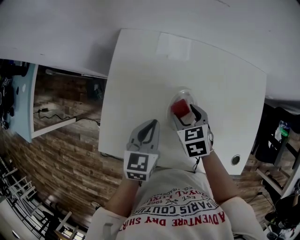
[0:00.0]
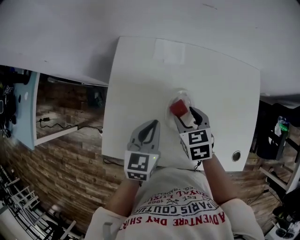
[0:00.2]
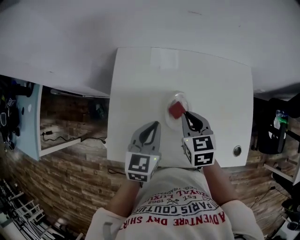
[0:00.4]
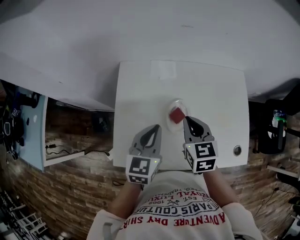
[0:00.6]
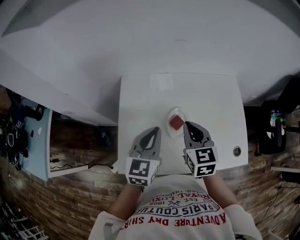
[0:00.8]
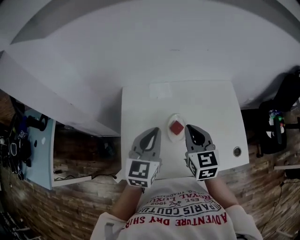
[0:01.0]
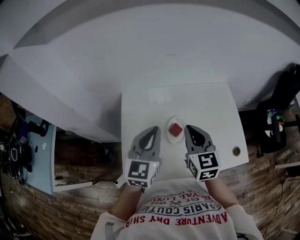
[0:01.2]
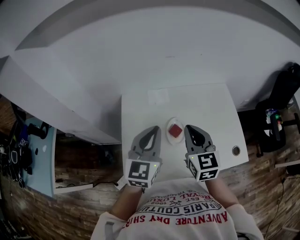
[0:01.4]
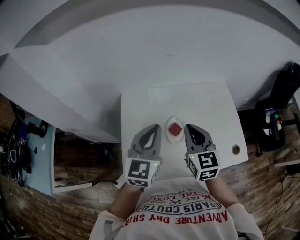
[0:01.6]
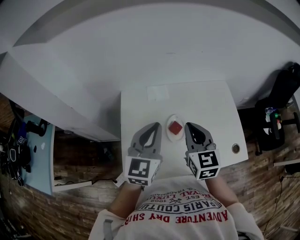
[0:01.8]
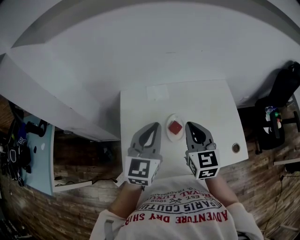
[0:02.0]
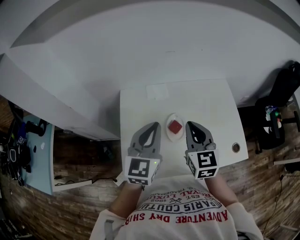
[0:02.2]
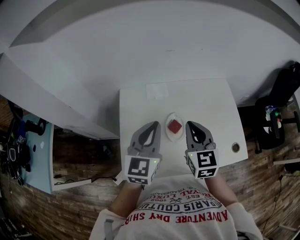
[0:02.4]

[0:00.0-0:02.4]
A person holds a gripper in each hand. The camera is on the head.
0:00.0 to 0:01.2: Both grippers travel together upward, roughly 25 cm. The left gripper changes its angle by about 30 degrees; the right gripper points its fingers about 40 degrees further upward, and closes.
0:01.2 to 0:02.4: The grippers stay close to where they were, moving slightly.

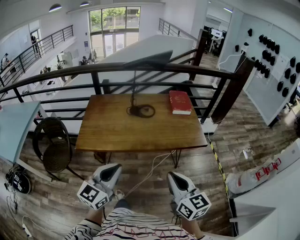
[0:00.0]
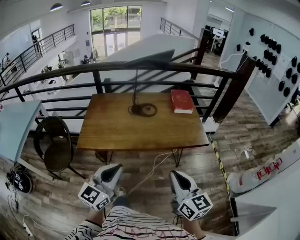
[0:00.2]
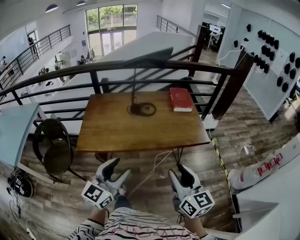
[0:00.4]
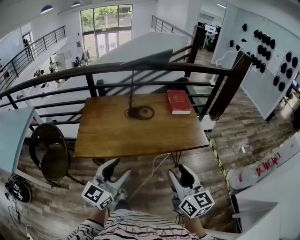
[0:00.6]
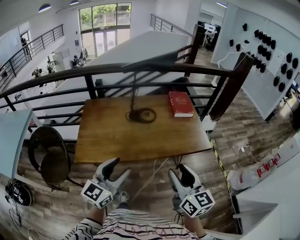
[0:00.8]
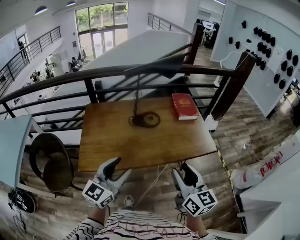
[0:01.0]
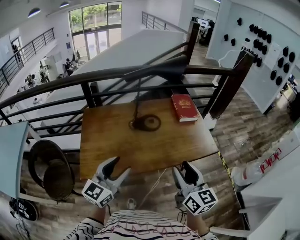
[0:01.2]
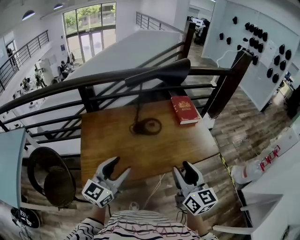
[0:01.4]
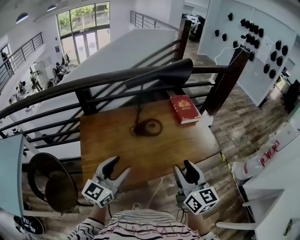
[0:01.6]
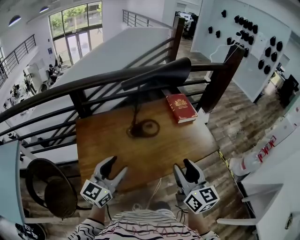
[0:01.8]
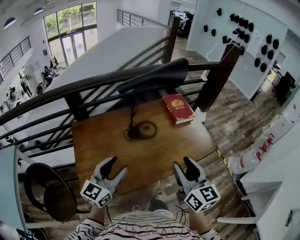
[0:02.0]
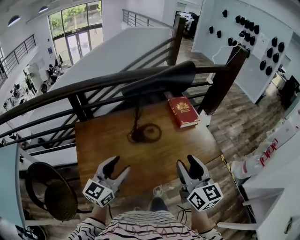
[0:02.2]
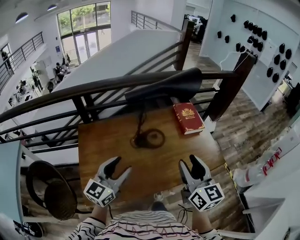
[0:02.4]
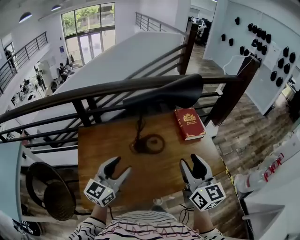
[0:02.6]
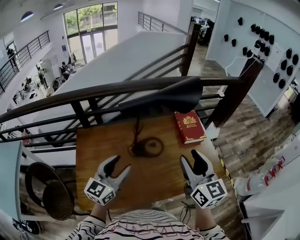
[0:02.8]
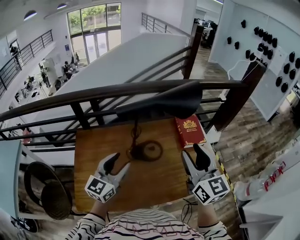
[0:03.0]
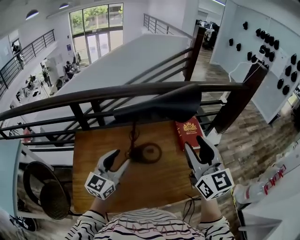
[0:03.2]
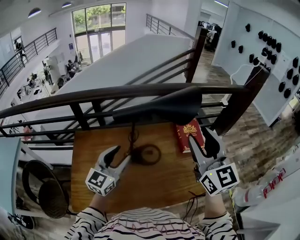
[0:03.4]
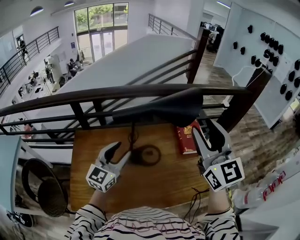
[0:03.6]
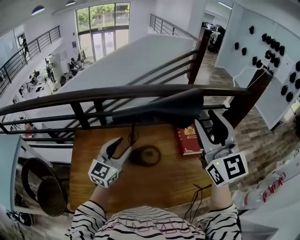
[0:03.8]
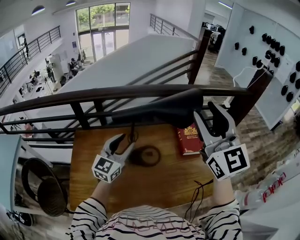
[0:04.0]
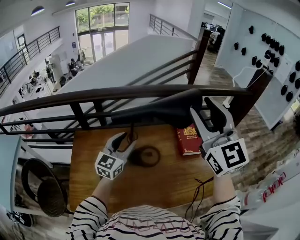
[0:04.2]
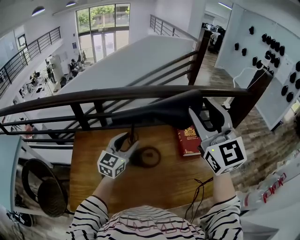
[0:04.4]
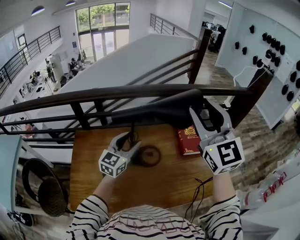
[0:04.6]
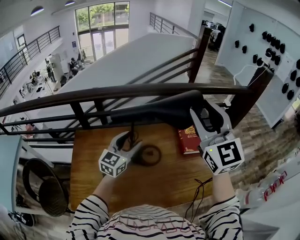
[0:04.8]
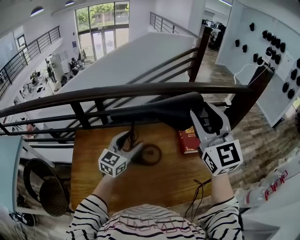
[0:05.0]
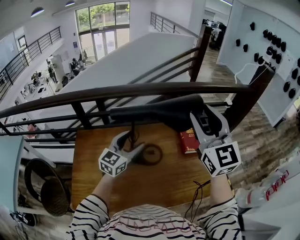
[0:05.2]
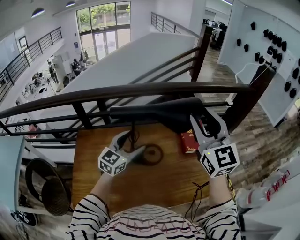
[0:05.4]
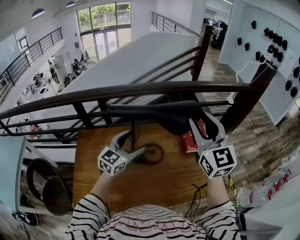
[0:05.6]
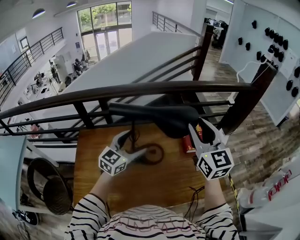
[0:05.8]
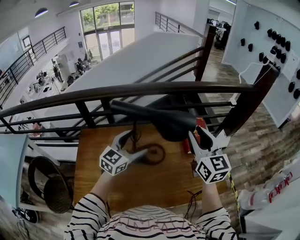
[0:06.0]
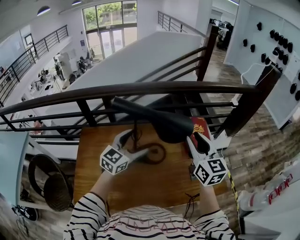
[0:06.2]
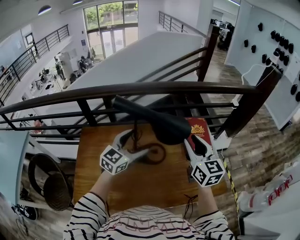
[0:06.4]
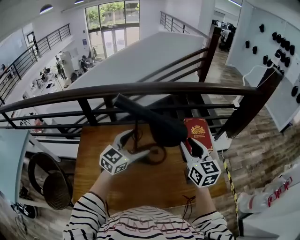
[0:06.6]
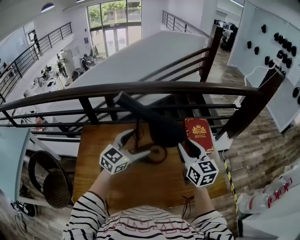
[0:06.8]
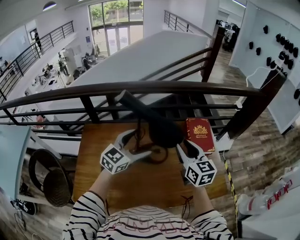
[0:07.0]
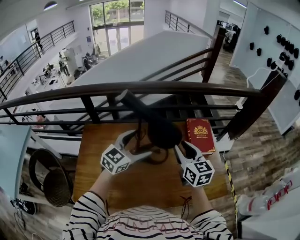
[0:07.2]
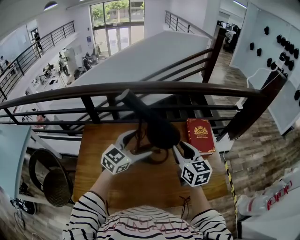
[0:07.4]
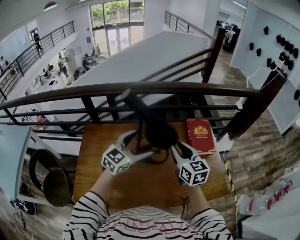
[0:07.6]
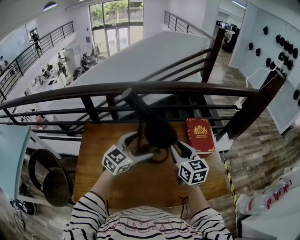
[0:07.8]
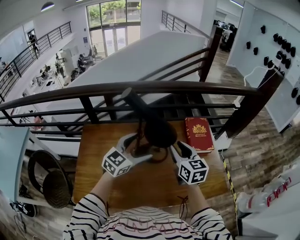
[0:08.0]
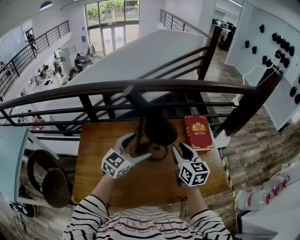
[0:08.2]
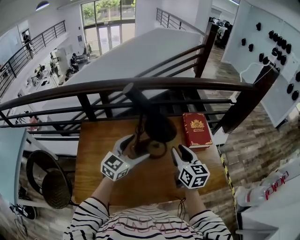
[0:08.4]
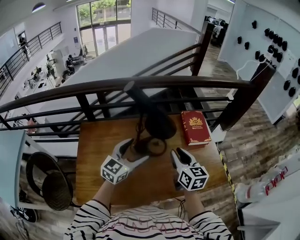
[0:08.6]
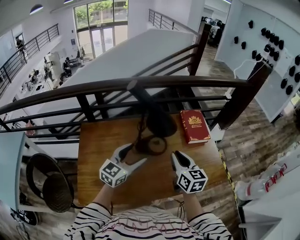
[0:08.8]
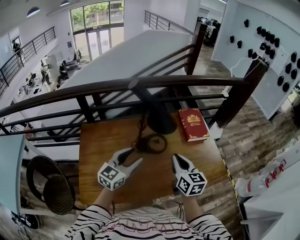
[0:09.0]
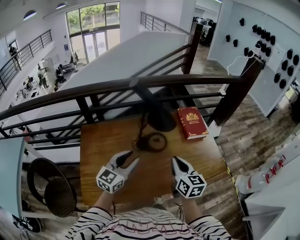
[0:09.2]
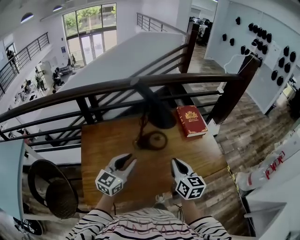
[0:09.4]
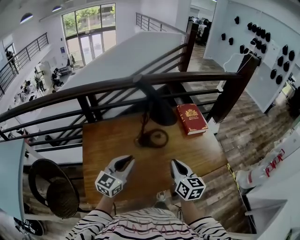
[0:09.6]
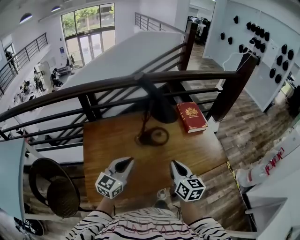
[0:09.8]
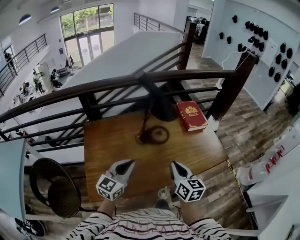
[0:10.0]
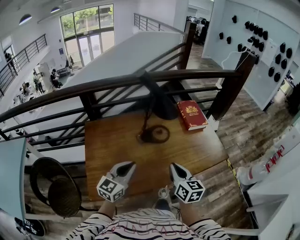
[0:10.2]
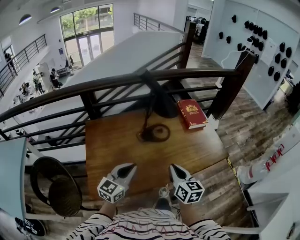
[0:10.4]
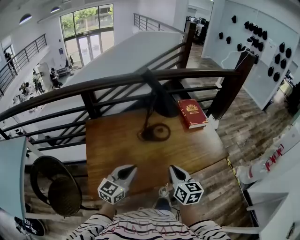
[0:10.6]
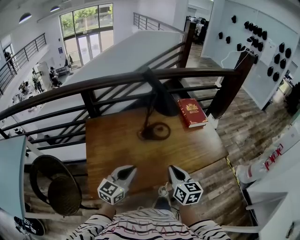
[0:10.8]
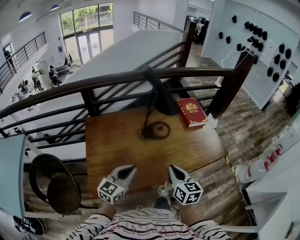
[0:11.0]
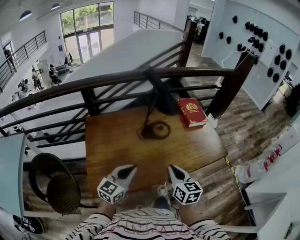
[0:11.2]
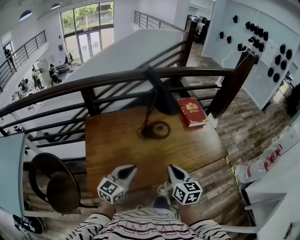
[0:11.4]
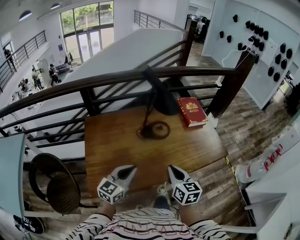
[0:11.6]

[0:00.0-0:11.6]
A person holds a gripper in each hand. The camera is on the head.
0:00.0 to 0:01.4: The two grippers go roughly 30 cm forward and to the left. The right gripper opens. Meanwhile the left gripper opens up.
0:01.4 to 0:02.8: Both grippers move forward, some 25 cm.
0:02.8 to 0:04.4: The left gripper travels forward by roughly 20 cm. The right gripper goes roughly 20 cm upward and forward, and turns by approximately 30 degrees.
0:04.4 to 0:05.8: The left gripper opens its fingers. The right gripper is displaced downward by some 10 cm.
0:05.8 to 0:07.2: The right gripper heads downward, covering roughly 15 cm, and swivels approximately 20 degrees.
0:07.2 to 0:08.8: Both grippers travel together backward, roughly 10 cm.
0:08.8 to 0:10.2: Both grippers travel together backward, some 20 cm. The left gripper closes up.
0:10.2 to 0:11.6: The grippers move only a little.

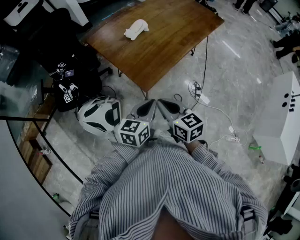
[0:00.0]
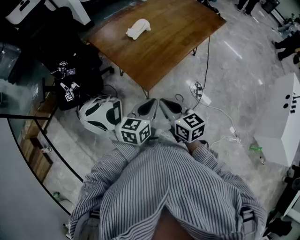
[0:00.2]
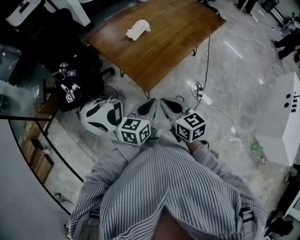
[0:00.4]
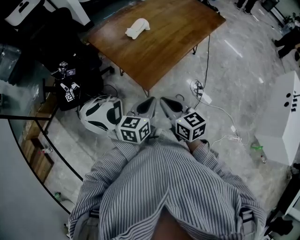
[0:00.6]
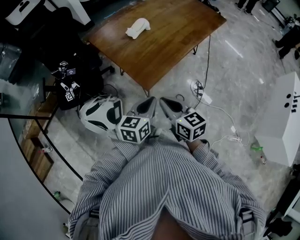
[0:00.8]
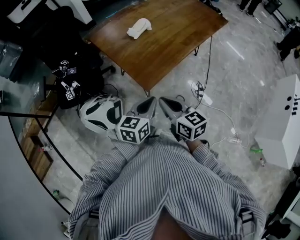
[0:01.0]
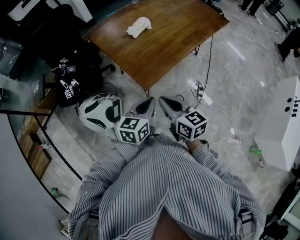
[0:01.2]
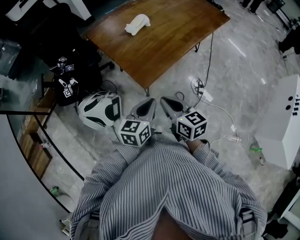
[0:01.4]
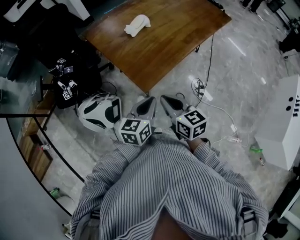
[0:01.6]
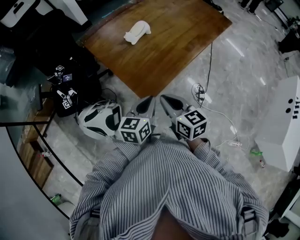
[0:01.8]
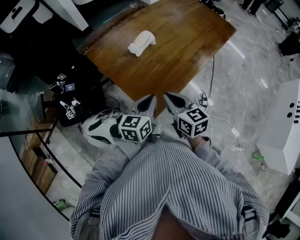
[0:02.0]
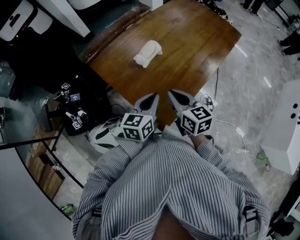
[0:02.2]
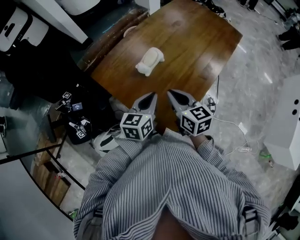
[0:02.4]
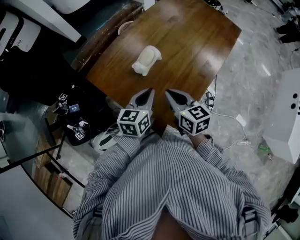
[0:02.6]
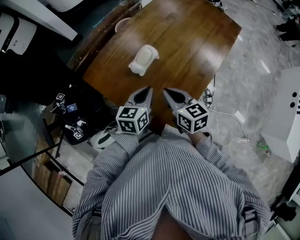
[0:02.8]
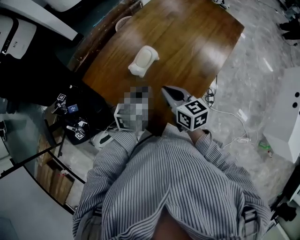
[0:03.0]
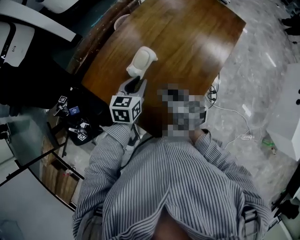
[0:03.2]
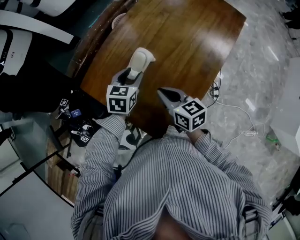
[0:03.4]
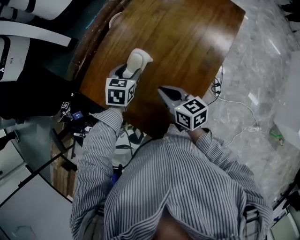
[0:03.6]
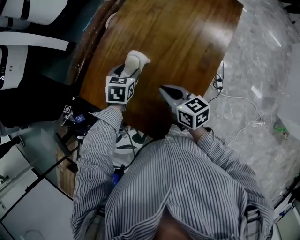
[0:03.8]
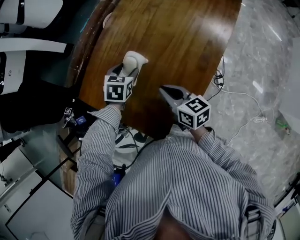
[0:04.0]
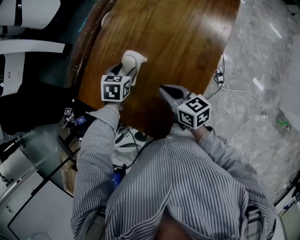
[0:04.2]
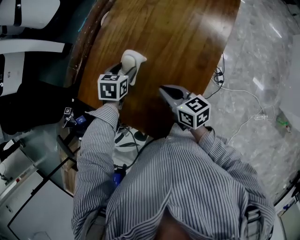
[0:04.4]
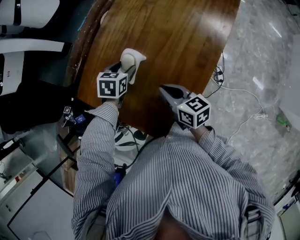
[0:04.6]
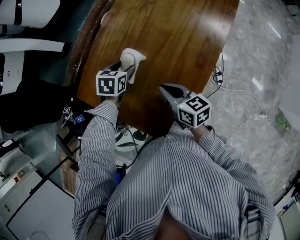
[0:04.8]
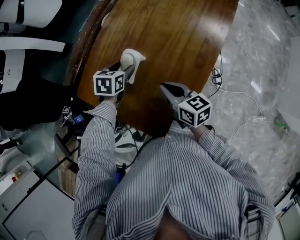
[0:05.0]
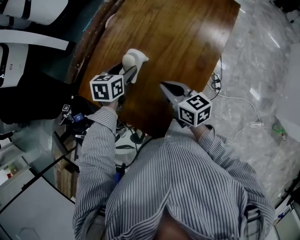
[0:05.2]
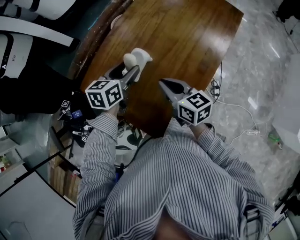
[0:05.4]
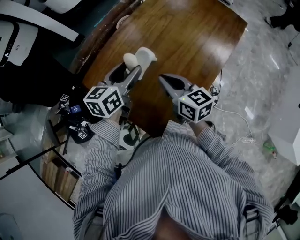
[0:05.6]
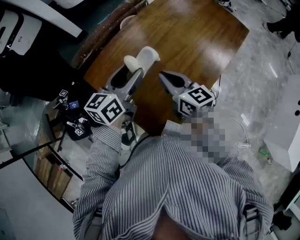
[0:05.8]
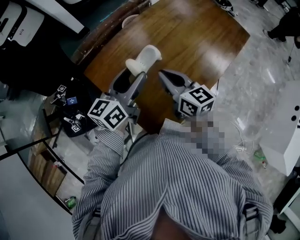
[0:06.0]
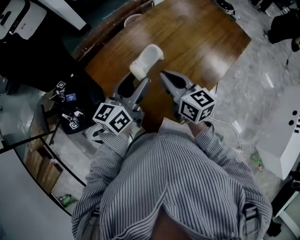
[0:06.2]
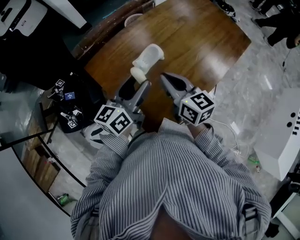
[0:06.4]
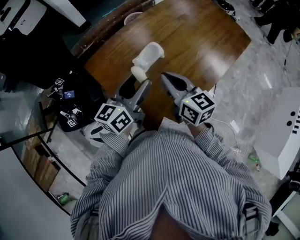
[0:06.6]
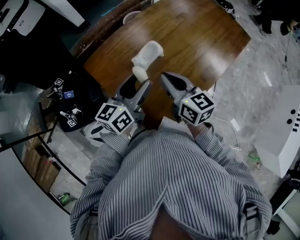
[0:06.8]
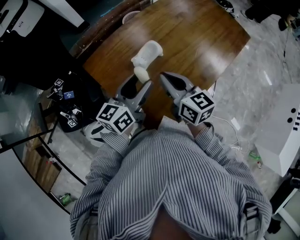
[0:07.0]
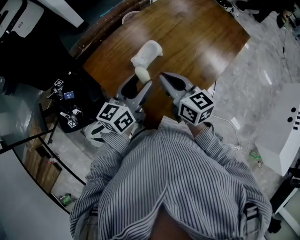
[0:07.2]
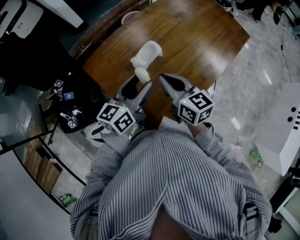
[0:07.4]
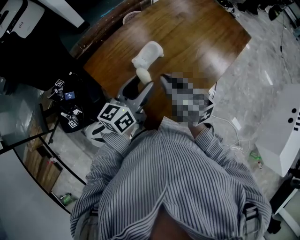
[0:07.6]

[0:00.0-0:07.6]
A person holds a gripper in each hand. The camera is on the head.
0:00.0 to 0:01.6: The grippers stay close to where they were, moving slightly.
0:01.6 to 0:03.0: The two grippers go roughly 35 cm forward.
0:03.0 to 0:04.6: The left gripper is displaced forward and downward by about 15 cm, swivels roughly 30 degrees, and opens its fingers; the right gripper is displaced downward by roughly 5 cm.
0:04.6 to 0:06.0: The left gripper travels upward and backward by roughly 25 cm, and angles its fingers upward, by approximately 50 degrees; the right gripper goes some 15 cm upward and to the left, and swivels some 20 degrees.
0:06.0 to 0:07.6: The left gripper shifts by some 5 cm.

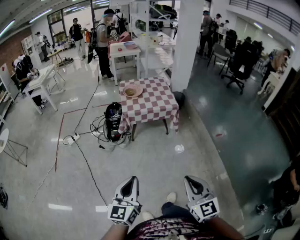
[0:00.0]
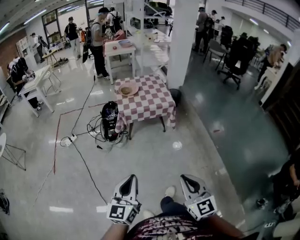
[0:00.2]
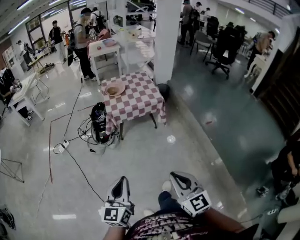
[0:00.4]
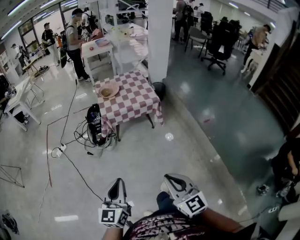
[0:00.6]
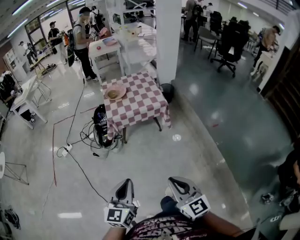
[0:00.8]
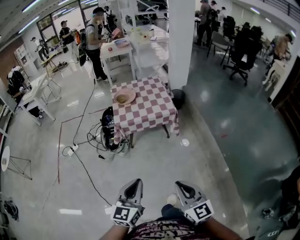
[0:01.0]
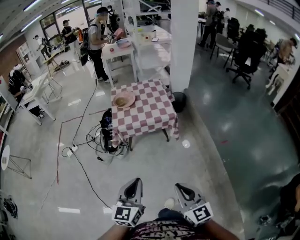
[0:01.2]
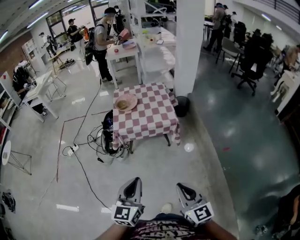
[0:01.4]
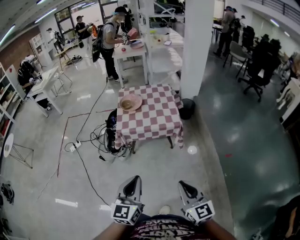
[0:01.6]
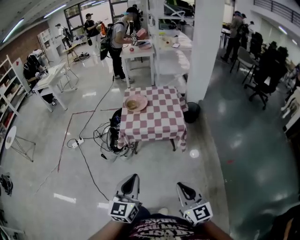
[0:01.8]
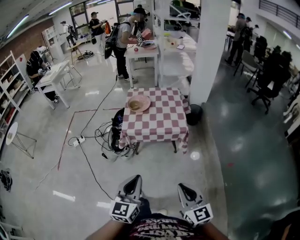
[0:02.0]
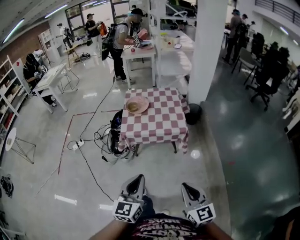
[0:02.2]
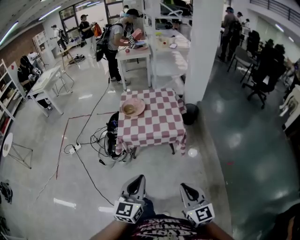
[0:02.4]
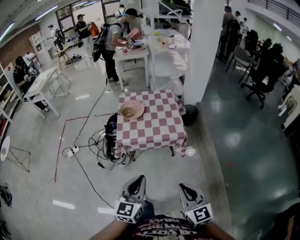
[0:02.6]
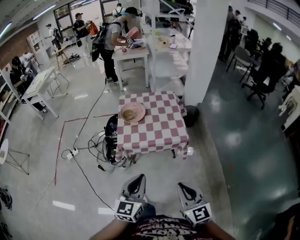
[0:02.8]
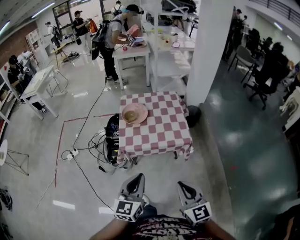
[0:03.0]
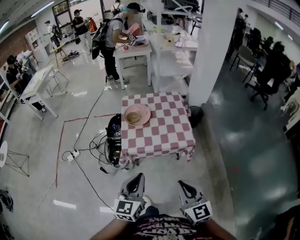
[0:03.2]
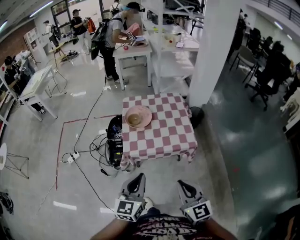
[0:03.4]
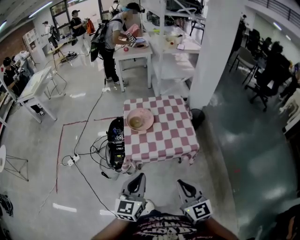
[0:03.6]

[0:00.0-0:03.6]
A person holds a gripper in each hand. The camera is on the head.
0:00.0 to 0:01.8: The two grippers go roughly 30 cm forward and to the right.
0:01.8 to 0:03.6: The right gripper goes roughly 30 cm forward and to the left, while the left gripper moves forward, some 25 cm.
